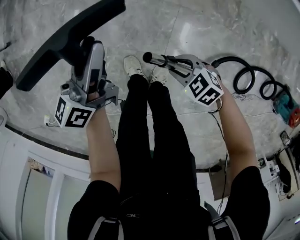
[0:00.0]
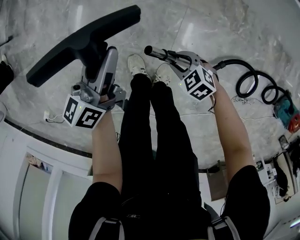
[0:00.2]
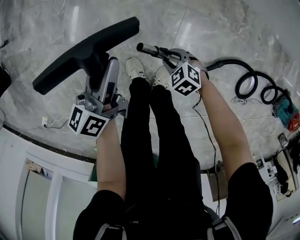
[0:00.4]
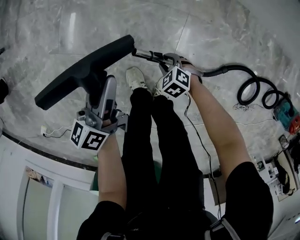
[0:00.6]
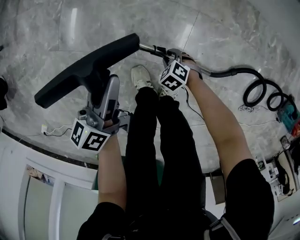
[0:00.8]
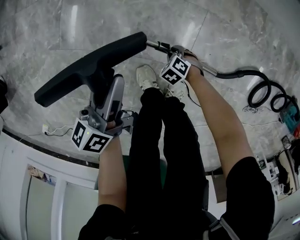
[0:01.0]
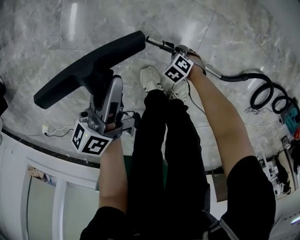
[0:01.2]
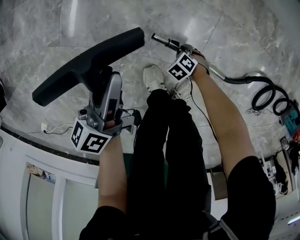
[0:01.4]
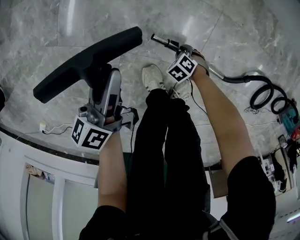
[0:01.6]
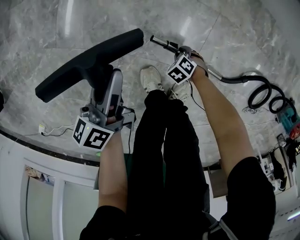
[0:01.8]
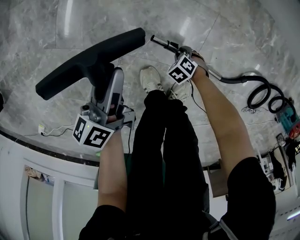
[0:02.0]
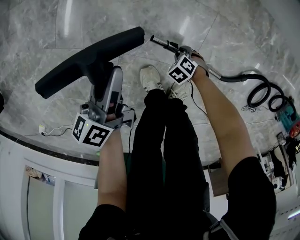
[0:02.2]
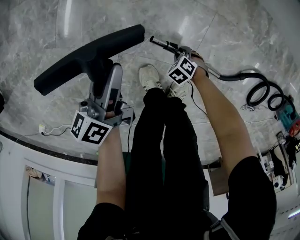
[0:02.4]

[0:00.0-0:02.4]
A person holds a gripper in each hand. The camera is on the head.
0:00.0 to 0:01.2: The left gripper goes about 20 cm downward, while the right gripper shifts roughly 35 cm downward, and tilts its fingers roughly 30 degrees downward.
0:01.2 to 0:02.4: The grippers stay close to where they were, moving slightly.

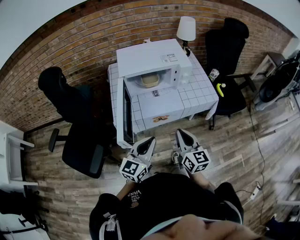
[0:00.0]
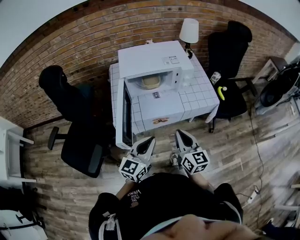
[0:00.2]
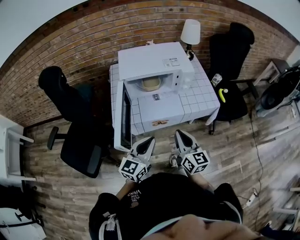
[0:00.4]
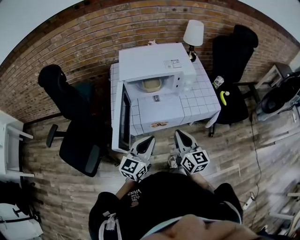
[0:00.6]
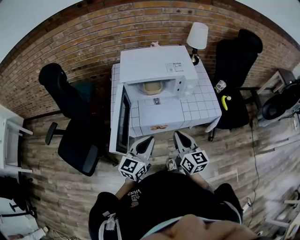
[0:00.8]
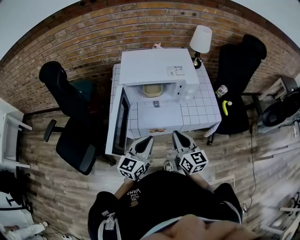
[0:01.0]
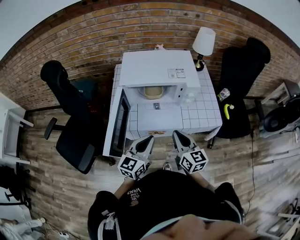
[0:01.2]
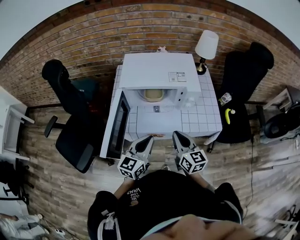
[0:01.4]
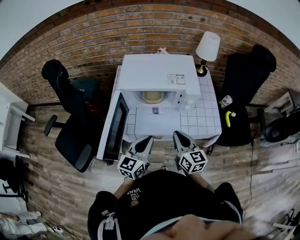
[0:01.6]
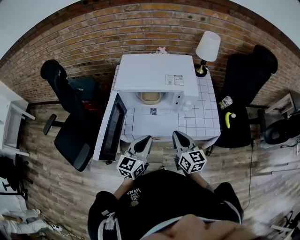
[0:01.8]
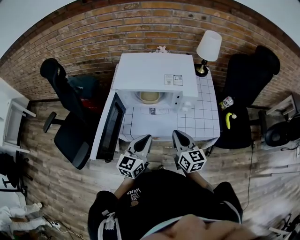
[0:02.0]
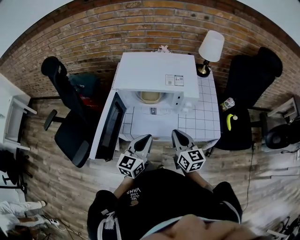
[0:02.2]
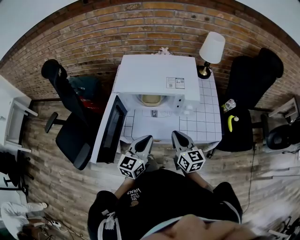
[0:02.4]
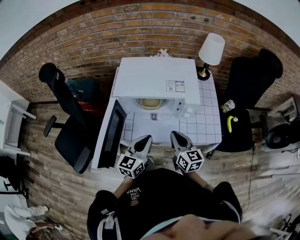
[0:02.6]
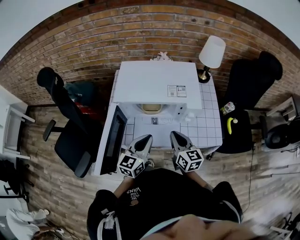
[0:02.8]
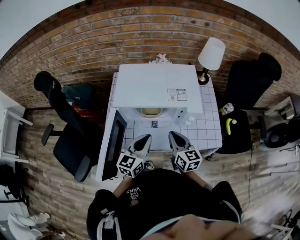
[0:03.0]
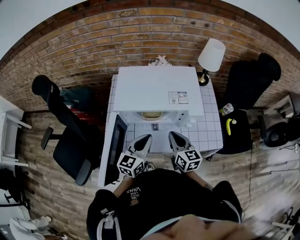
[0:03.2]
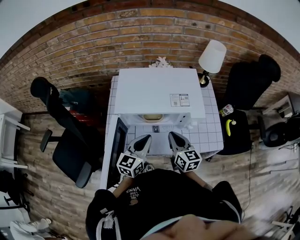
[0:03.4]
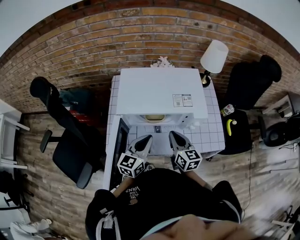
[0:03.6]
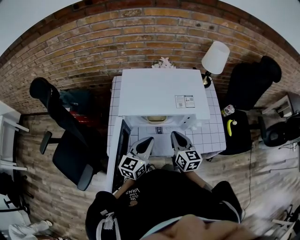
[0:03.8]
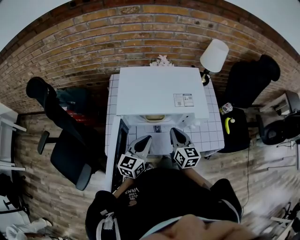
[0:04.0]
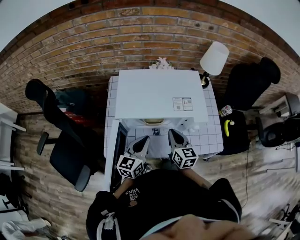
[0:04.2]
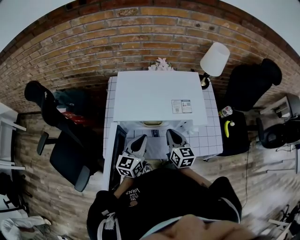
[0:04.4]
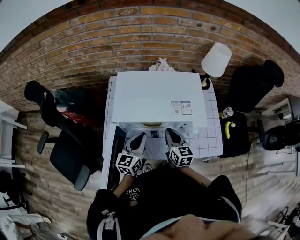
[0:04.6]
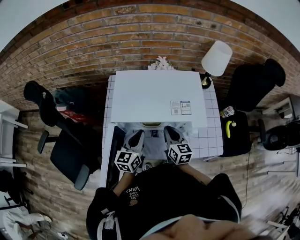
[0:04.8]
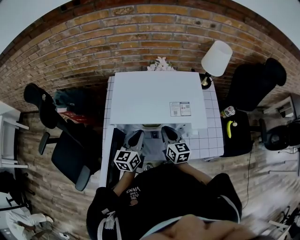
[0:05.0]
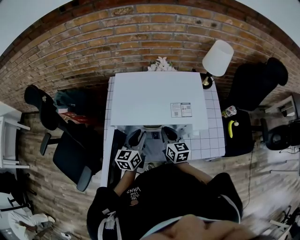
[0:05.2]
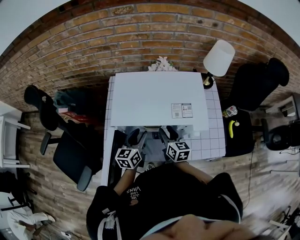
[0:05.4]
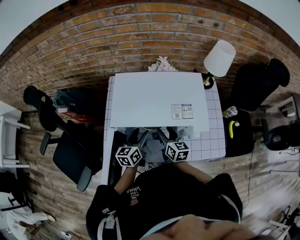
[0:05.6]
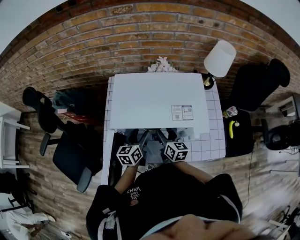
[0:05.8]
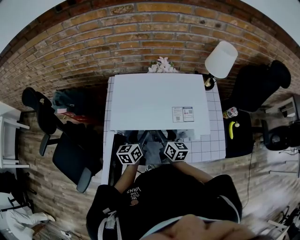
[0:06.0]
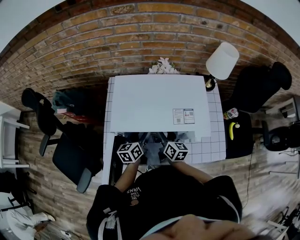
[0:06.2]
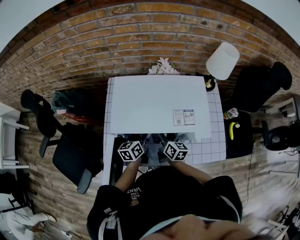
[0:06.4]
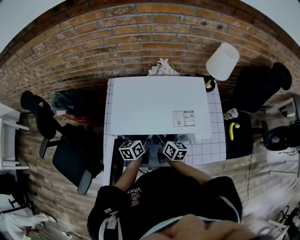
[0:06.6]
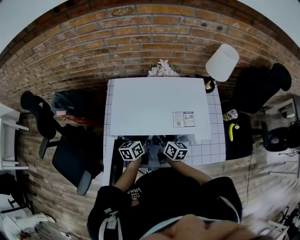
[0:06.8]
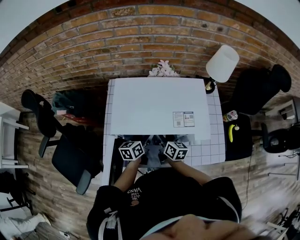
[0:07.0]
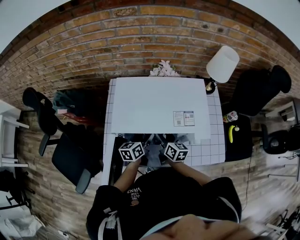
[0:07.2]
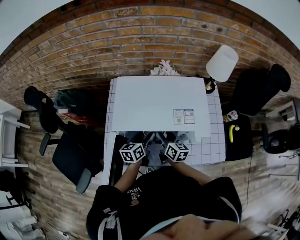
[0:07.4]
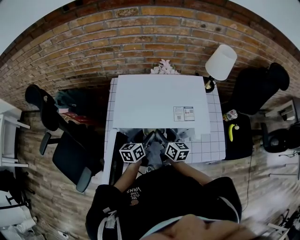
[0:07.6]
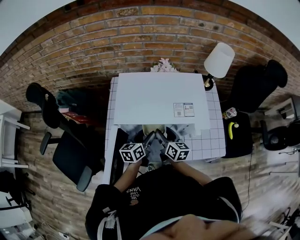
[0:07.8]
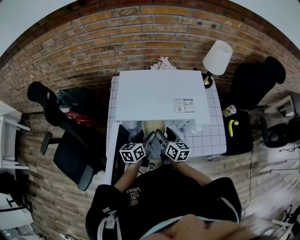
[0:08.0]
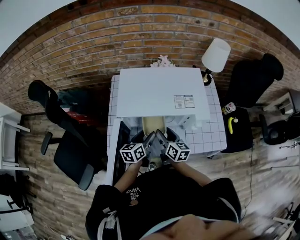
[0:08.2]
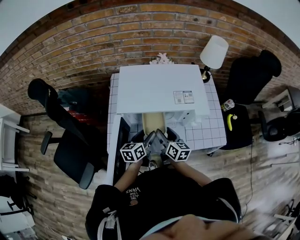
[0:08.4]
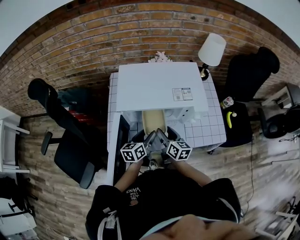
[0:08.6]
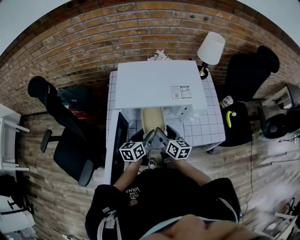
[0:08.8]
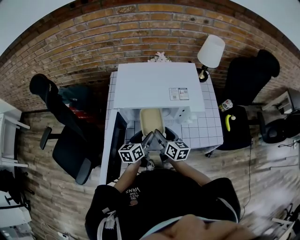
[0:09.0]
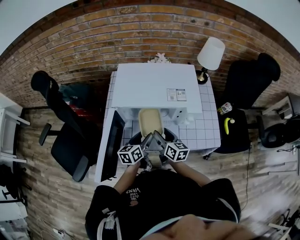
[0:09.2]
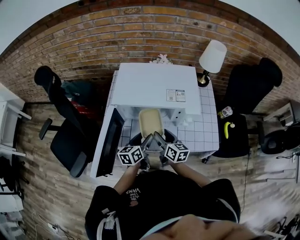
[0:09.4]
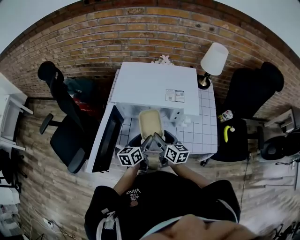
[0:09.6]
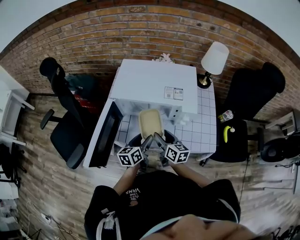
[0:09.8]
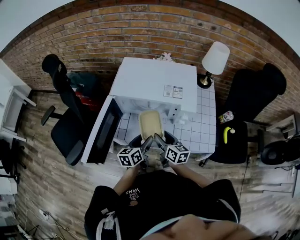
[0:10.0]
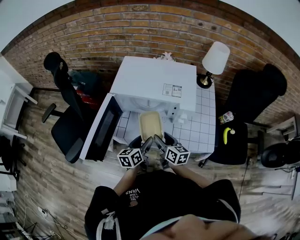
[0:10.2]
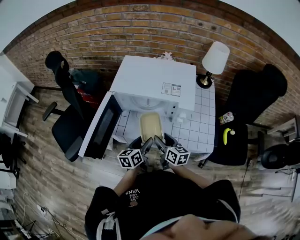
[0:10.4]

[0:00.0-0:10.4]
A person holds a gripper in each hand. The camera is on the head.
0:00.0 to 0:01.4: The two grippers go roughly 15 cm forward.
0:01.4 to 0:03.0: Both grippers move forward, approximately 10 cm.
0:03.0 to 0:04.4: The two grippers go roughly 10 cm forward.
0:04.4 to 0:06.0: Both grippers travel together downward and forward, about 10 cm. The right gripper opens up. Meanwhile the left gripper changes its angle by about 20 degrees, and opens.
0:06.0 to 0:07.4: The grippers move only a little.
0:07.4 to 0:09.0: The two grippers go some 10 cm backward.
0:09.0 to 0:10.4: The grippers both shift backward and to the right by some 10 cm.

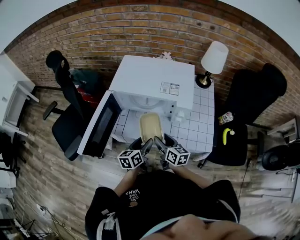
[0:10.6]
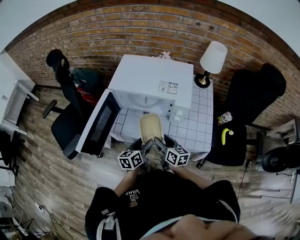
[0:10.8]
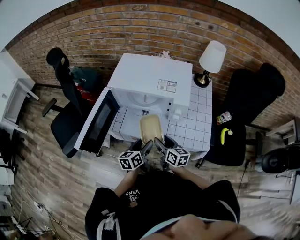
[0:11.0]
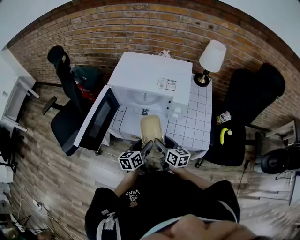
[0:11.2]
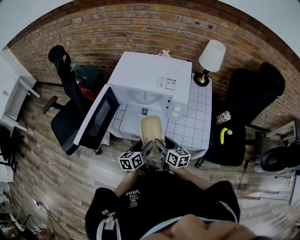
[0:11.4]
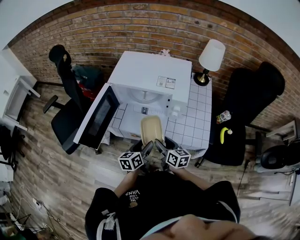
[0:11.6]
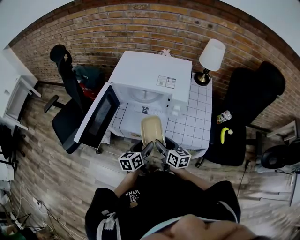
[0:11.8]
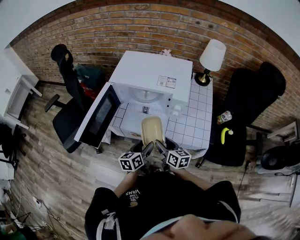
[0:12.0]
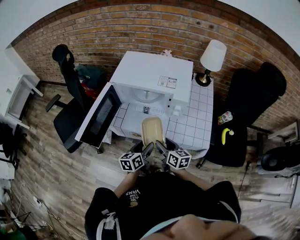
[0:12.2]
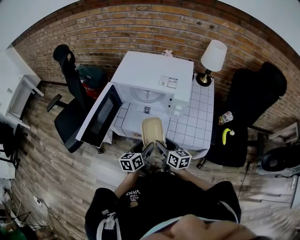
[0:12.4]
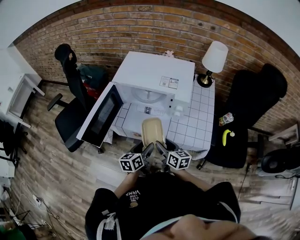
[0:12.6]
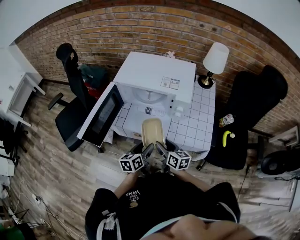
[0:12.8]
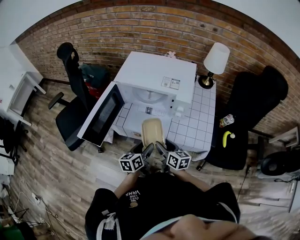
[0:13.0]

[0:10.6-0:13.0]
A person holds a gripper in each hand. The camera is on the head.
0:10.6 to 0:11.8: The two grippers go roughly 5 cm backward.
0:11.8 to 0:13.0: The grippers stay close to where they were, moving slightly.

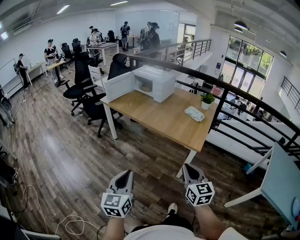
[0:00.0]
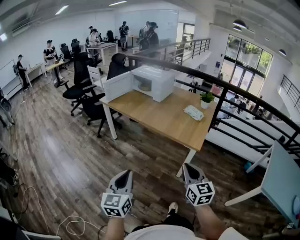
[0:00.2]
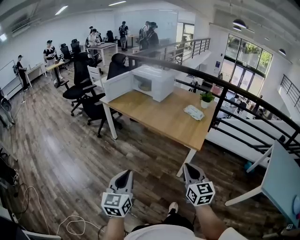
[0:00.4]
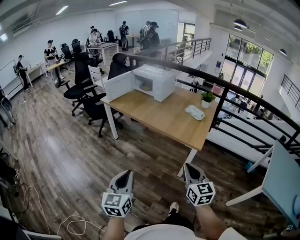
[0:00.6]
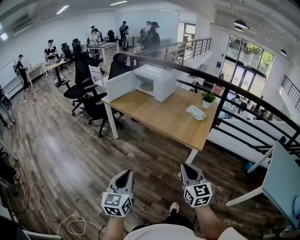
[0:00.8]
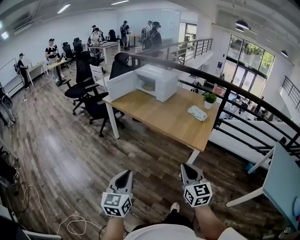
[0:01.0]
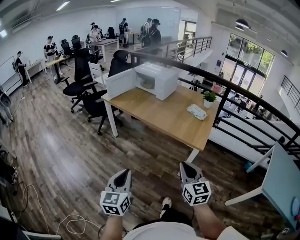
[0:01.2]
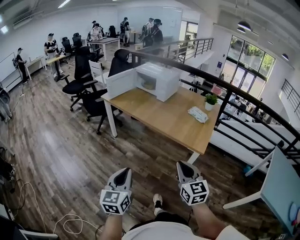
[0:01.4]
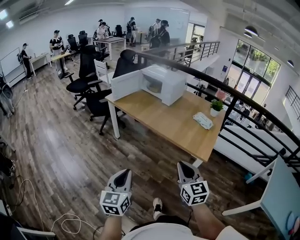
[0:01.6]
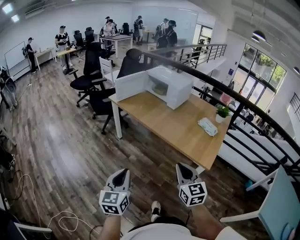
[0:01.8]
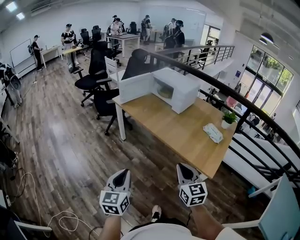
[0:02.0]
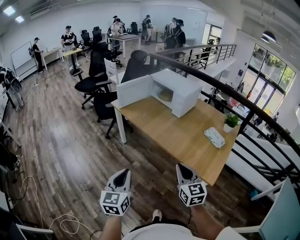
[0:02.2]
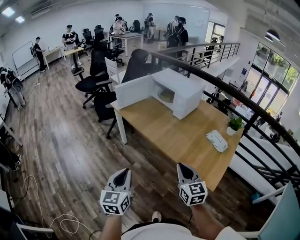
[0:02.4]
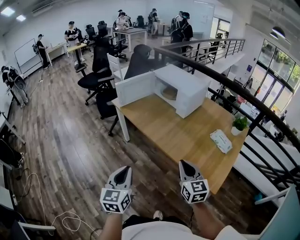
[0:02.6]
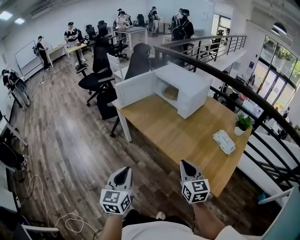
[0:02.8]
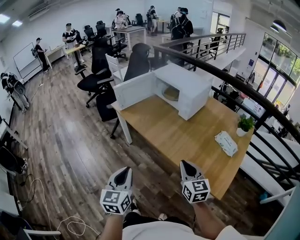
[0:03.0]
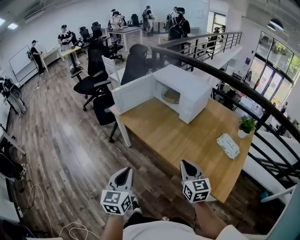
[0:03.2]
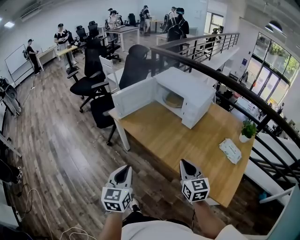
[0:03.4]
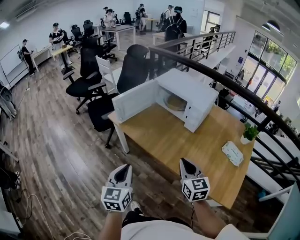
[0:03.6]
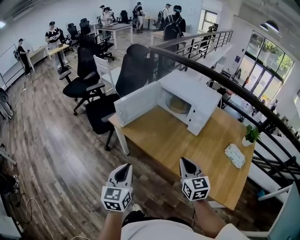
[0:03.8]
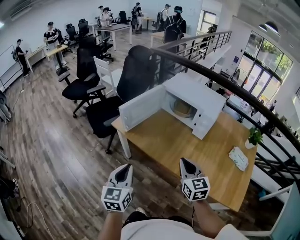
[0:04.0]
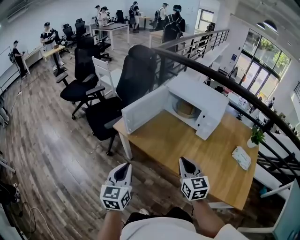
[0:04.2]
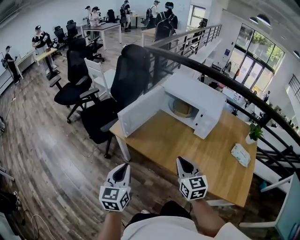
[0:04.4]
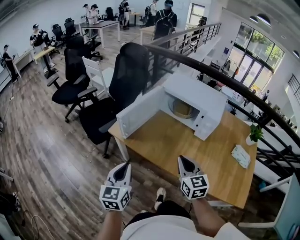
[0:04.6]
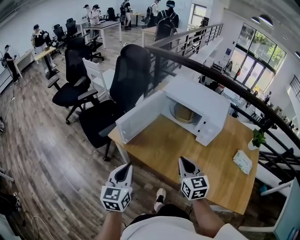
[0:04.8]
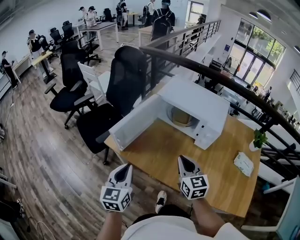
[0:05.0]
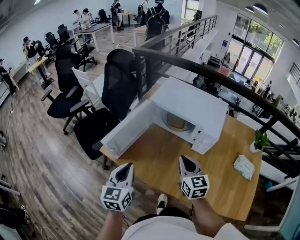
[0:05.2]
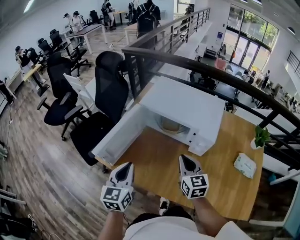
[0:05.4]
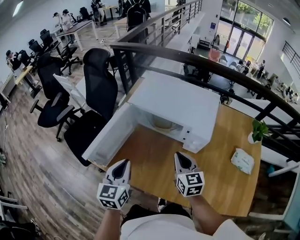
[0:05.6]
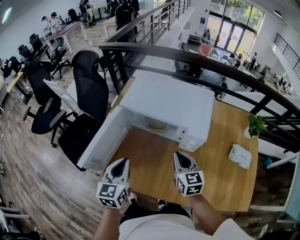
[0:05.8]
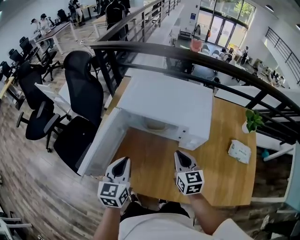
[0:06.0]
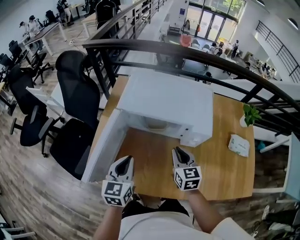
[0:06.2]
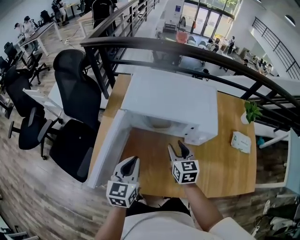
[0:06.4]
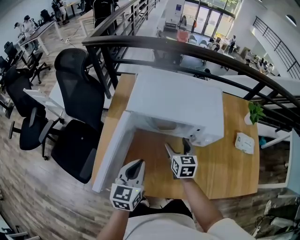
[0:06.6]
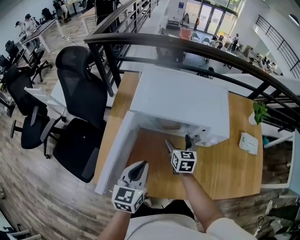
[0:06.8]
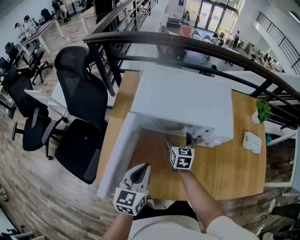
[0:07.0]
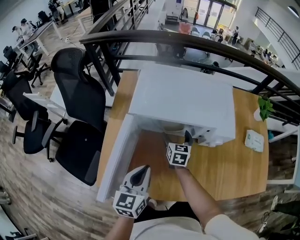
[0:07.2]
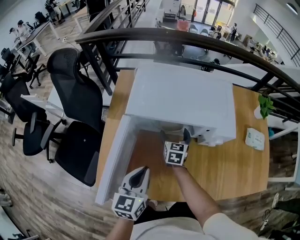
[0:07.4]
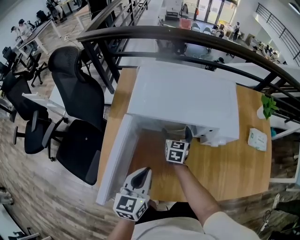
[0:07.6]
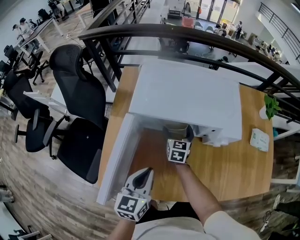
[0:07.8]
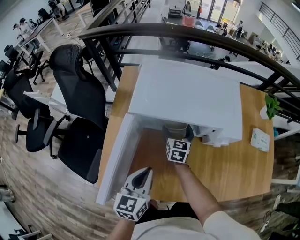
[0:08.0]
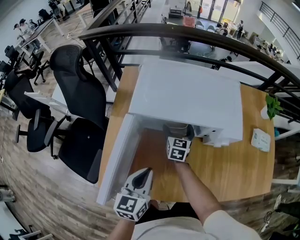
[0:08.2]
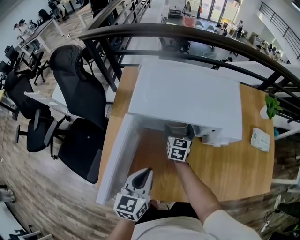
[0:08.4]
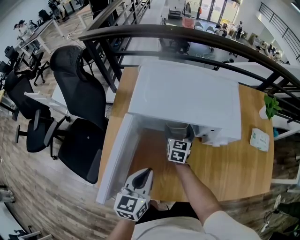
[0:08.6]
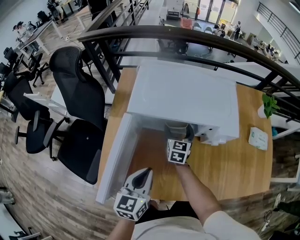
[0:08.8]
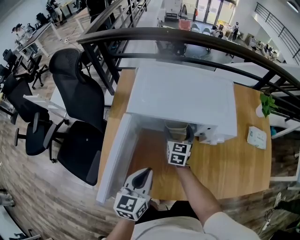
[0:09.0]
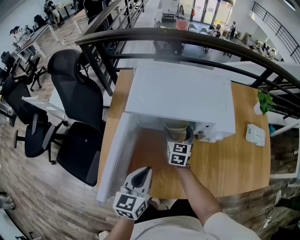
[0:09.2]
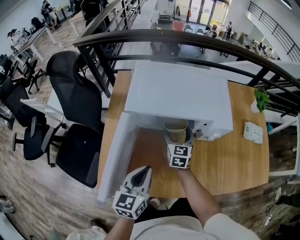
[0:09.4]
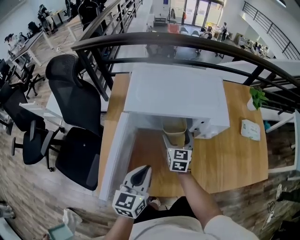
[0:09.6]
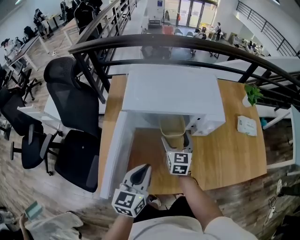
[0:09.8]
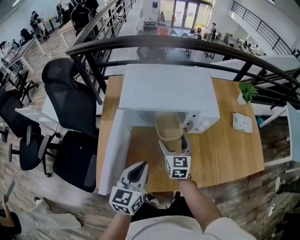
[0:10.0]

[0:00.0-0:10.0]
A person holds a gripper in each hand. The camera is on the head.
0:00.0 to 0:01.4: The right gripper moves to the left, approximately 5 cm. The left gripper moves roughly 5 cm.
0:01.4 to 0:02.8: The two grippers go roughly 35 cm forward.
0:02.8 to 0:04.2: The two grippers go approximately 35 cm forward and to the left.
0:04.2 to 0:05.8: Both grippers travel together forward and to the right, about 30 cm.
0:05.8 to 0:07.2: The left gripper goes roughly 10 cm downward and forward, while the right gripper goes roughly 25 cm downward, forward and to the left, rotates some 30 degrees, and opens its fingers.
0:07.2 to 0:08.6: The grippers make only small movements.
0:08.6 to 0:10.0: The left gripper moves approximately 5 cm; the right gripper is displaced backward and upward by about 15 cm.
